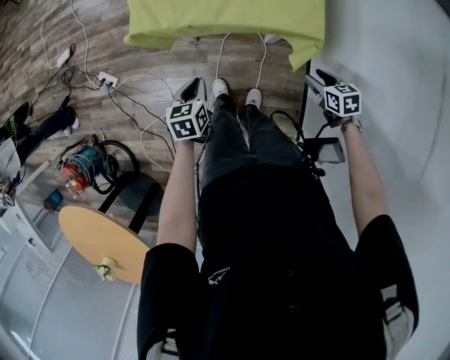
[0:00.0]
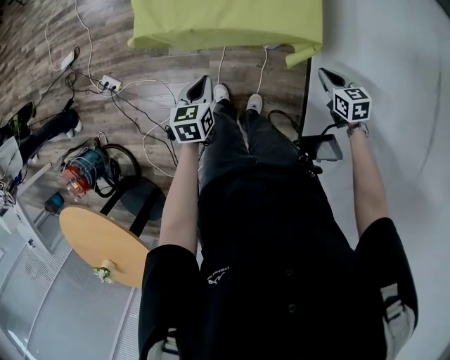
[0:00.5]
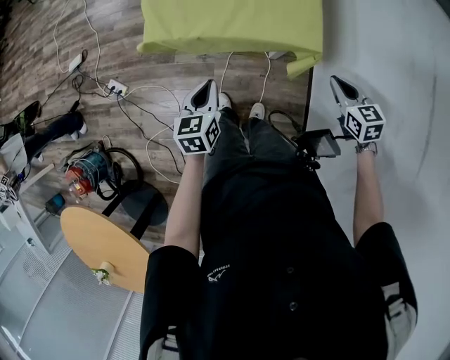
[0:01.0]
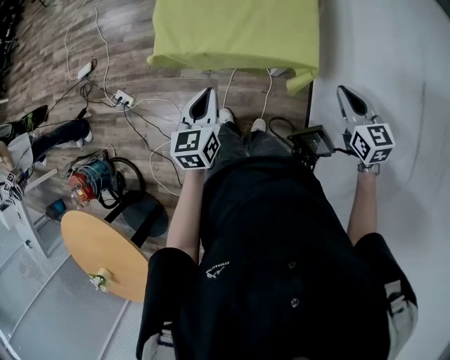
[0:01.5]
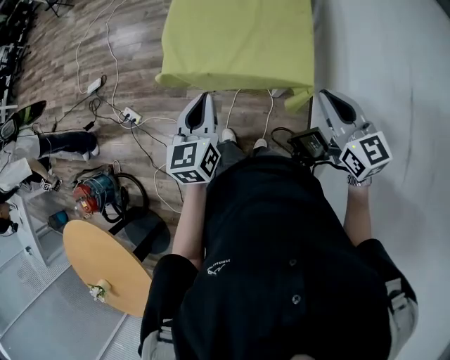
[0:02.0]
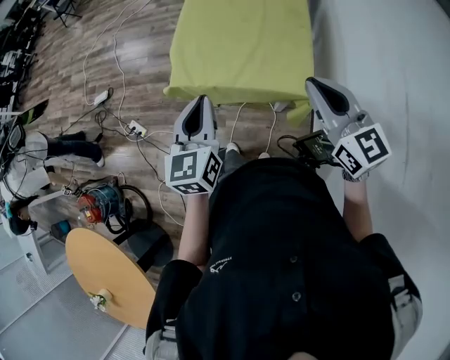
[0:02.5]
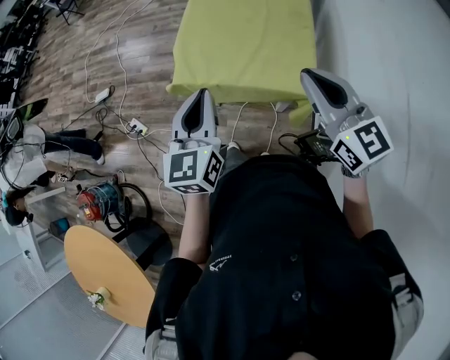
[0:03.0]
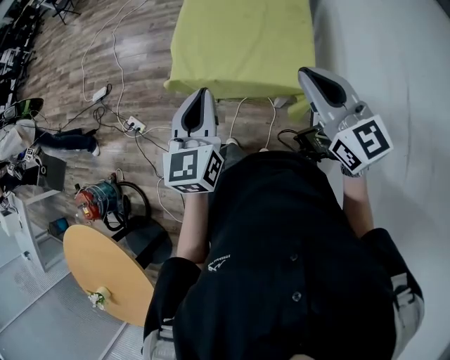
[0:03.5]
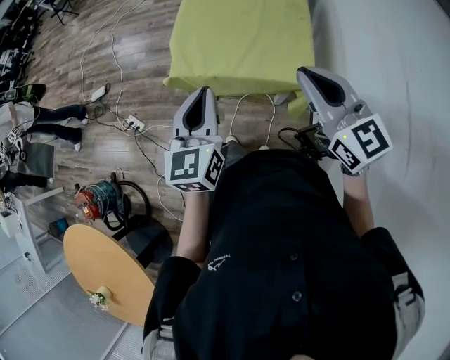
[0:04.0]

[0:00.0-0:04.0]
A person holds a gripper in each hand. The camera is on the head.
0:00.0 to 0:02.0: The grippers both shift upward by some 30 cm. The left gripper points its fingers roughly 30 degrees further upward. The right gripper angles its fingers upward, by about 40 degrees, and closes.
0:02.0 to 0:04.0: The left gripper goes about 10 cm upward; the right gripper travels upward and to the left by roughly 15 cm.

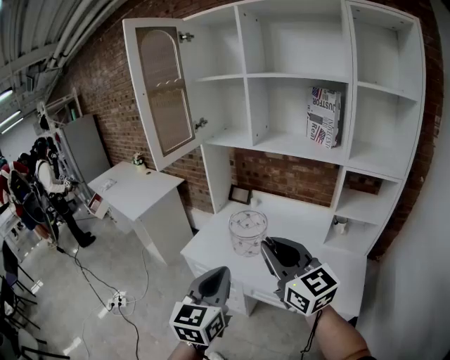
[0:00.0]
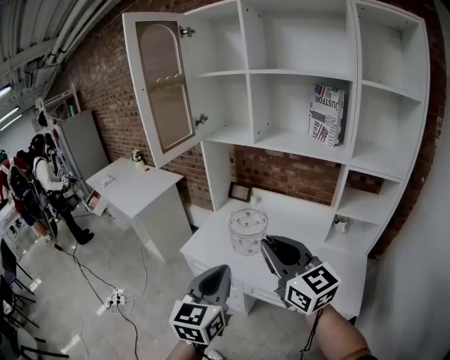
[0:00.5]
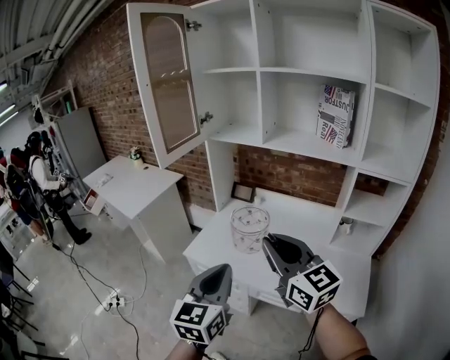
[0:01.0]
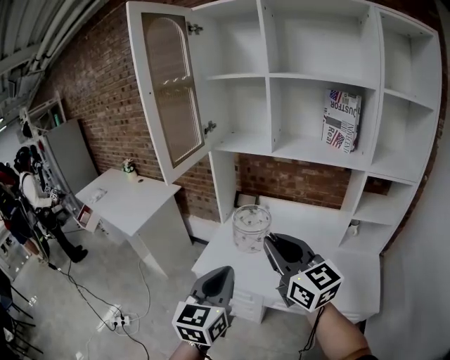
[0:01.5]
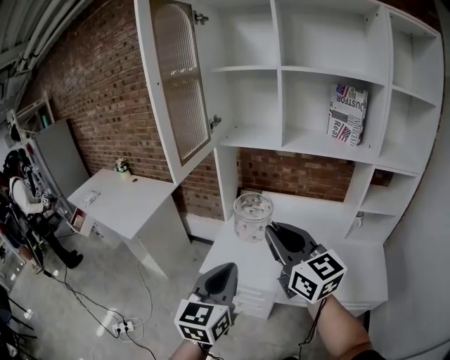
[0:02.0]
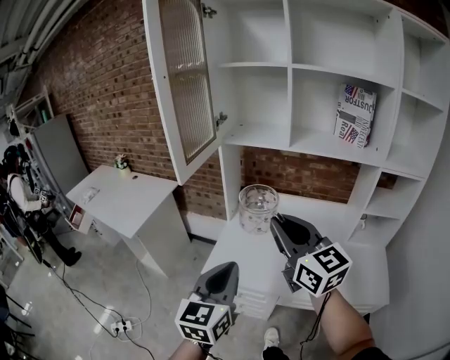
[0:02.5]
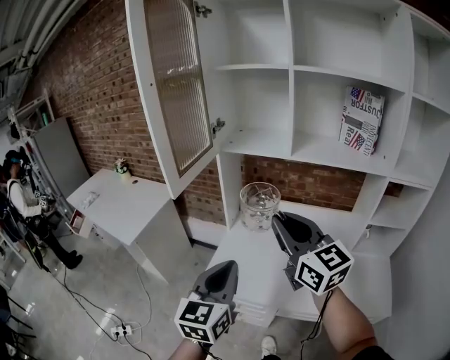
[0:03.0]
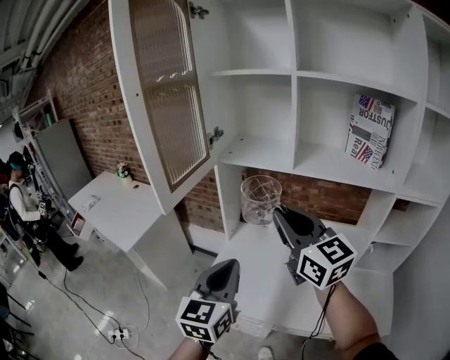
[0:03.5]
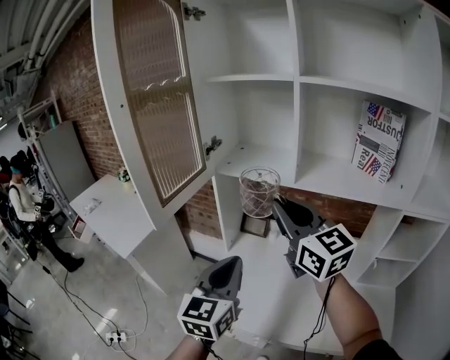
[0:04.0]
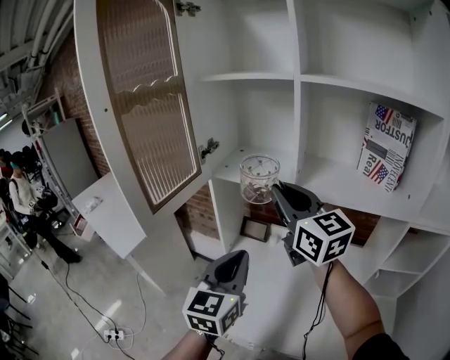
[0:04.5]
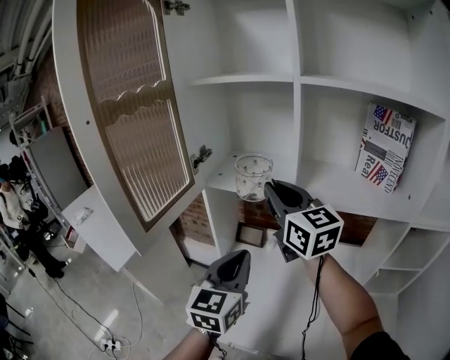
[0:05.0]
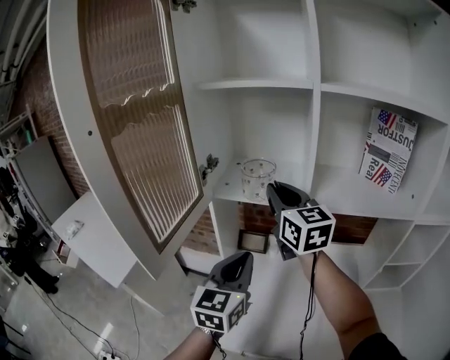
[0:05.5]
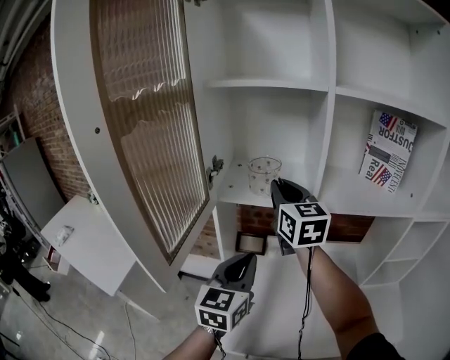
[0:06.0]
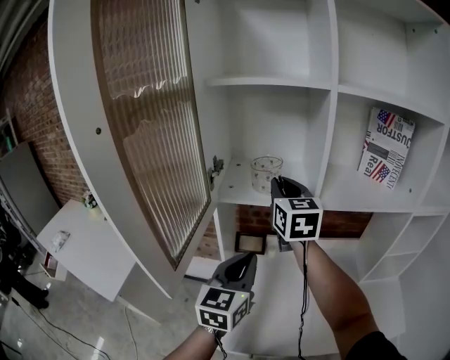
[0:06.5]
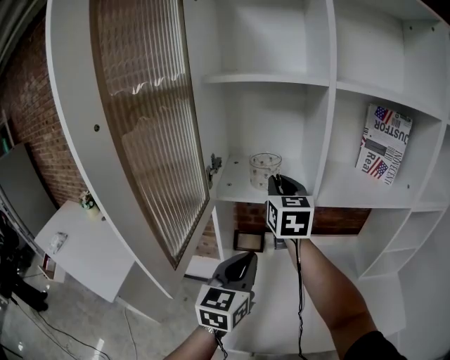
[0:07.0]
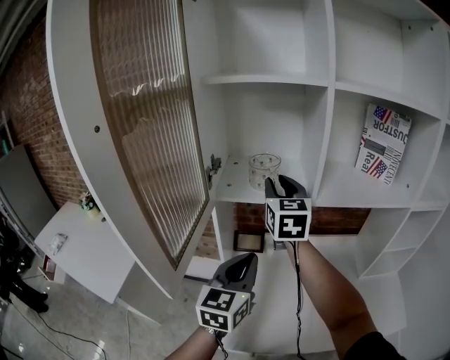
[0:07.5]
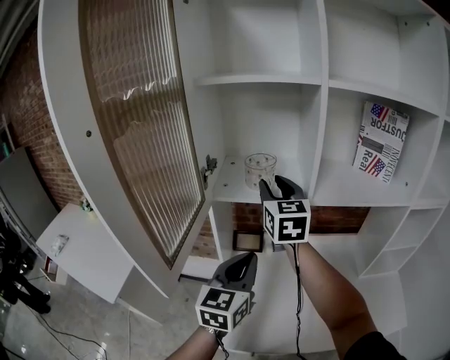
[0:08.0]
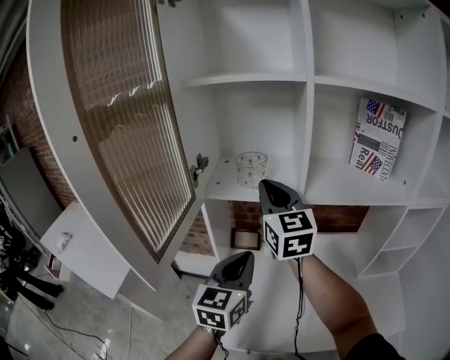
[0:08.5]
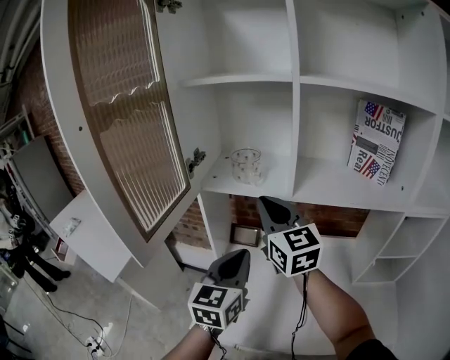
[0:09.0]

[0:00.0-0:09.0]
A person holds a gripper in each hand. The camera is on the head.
0:00.0 to 0:02.0: Both grippers travel together to the left and forward, about 20 cm.
0:02.0 to 0:04.5: Both grippers travel together forward, roughly 25 cm.
0:04.5 to 0:07.0: The right gripper changes place by about 15 cm, and turns by approximately 40 degrees, while the left gripper shifts by approximately 15 cm.
0:07.0 to 0:09.0: The right gripper is displaced backward by approximately 10 cm, changes its angle by approximately 20 degrees, and opens, then closes again. Meanwhile the left gripper heads to the right, covering approximately 5 cm.

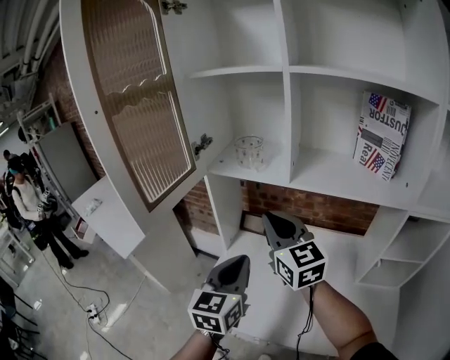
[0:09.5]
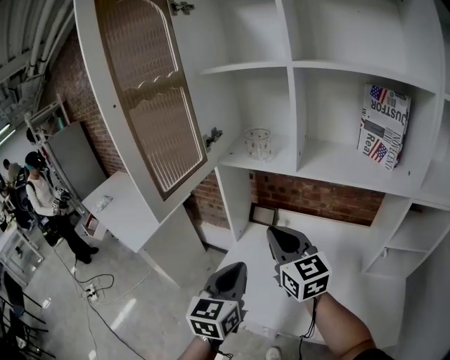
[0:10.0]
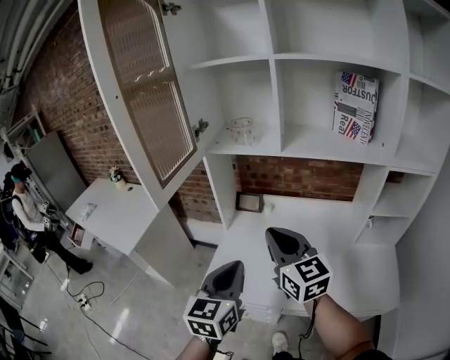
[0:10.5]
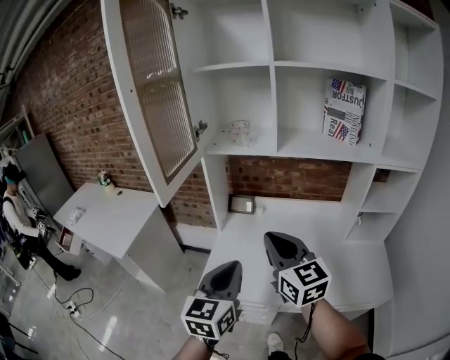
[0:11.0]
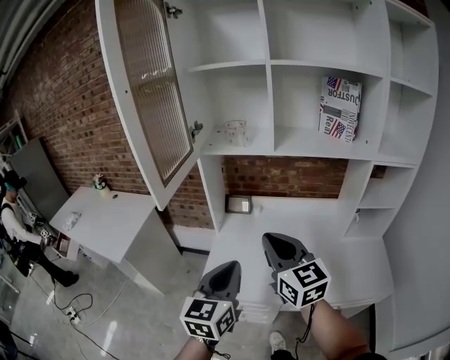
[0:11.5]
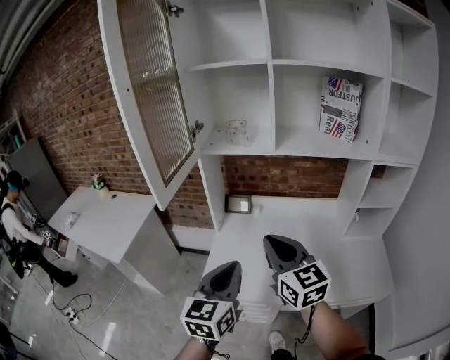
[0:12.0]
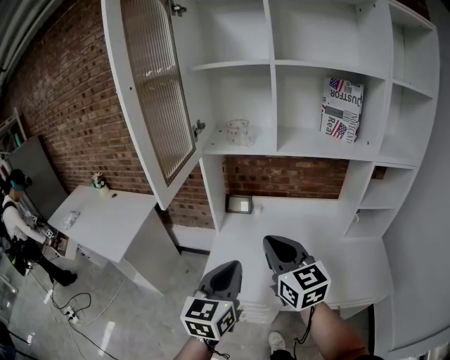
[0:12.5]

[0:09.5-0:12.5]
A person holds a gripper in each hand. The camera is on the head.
0:09.5 to 0:11.0: The left gripper travels backward and to the left by roughly 15 cm, while the right gripper shifts some 20 cm backward.
0:11.0 to 0:12.5: The two grippers keep their place.

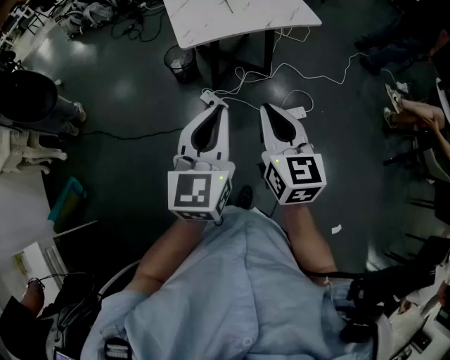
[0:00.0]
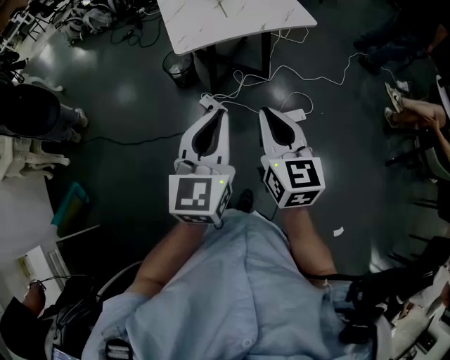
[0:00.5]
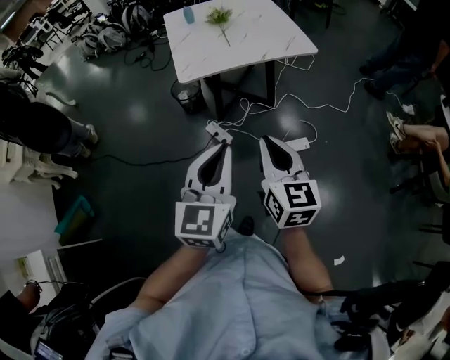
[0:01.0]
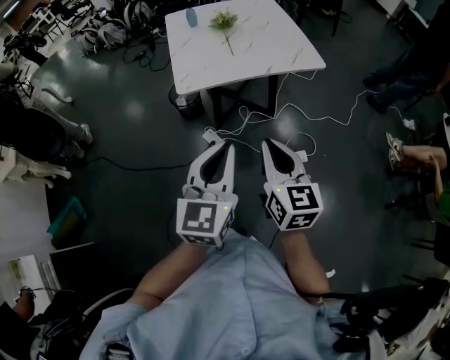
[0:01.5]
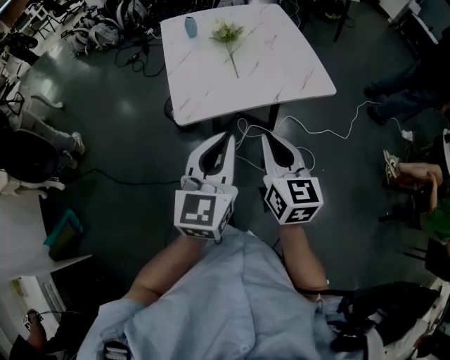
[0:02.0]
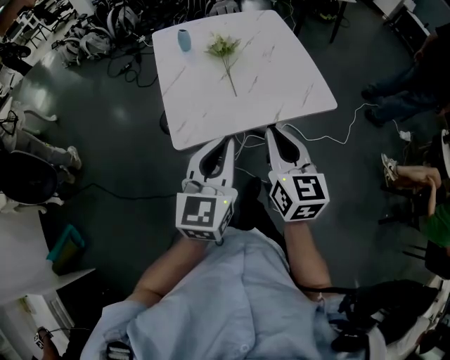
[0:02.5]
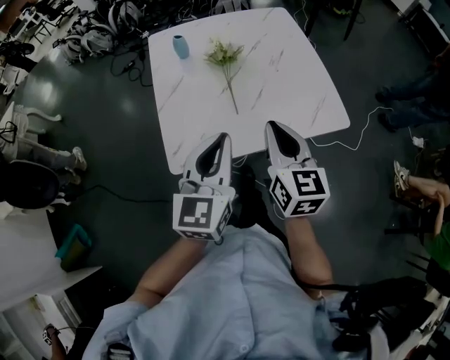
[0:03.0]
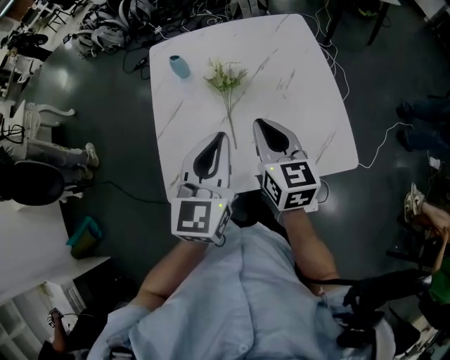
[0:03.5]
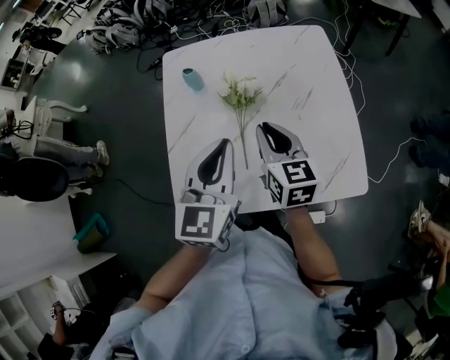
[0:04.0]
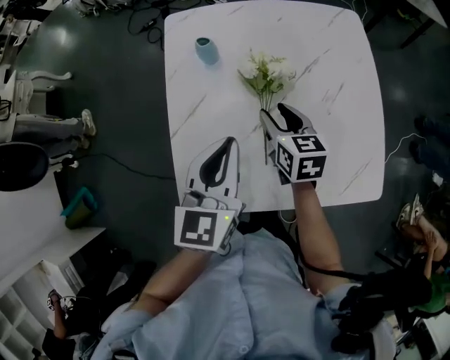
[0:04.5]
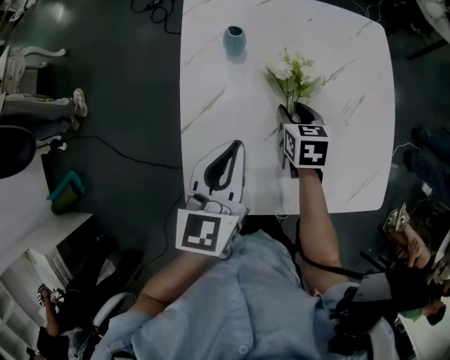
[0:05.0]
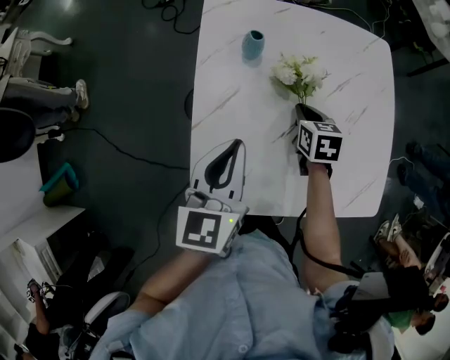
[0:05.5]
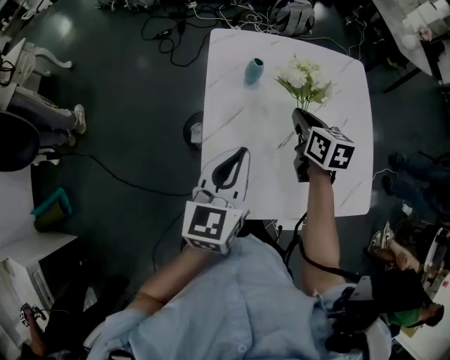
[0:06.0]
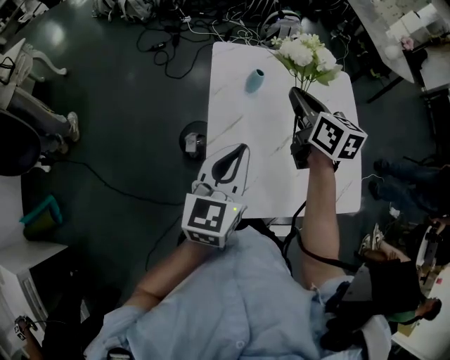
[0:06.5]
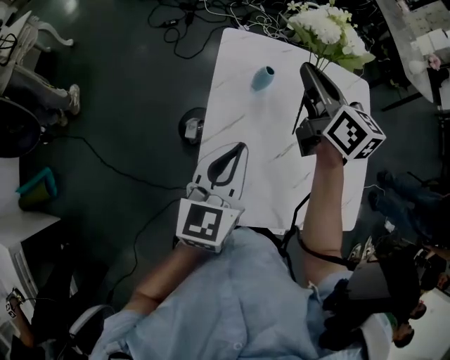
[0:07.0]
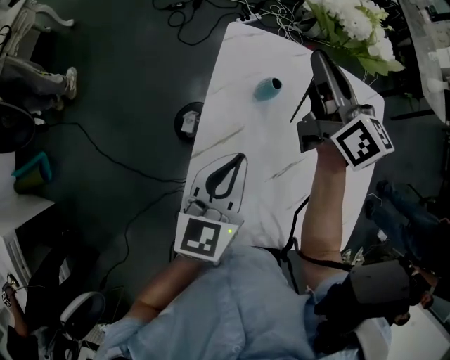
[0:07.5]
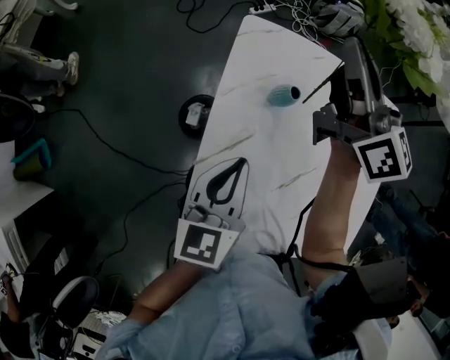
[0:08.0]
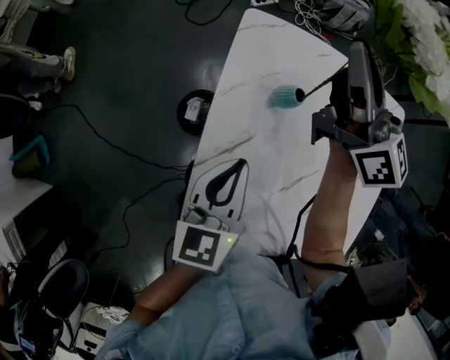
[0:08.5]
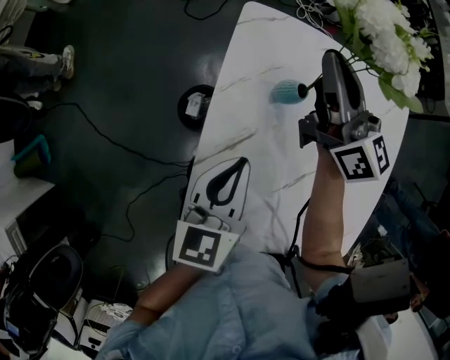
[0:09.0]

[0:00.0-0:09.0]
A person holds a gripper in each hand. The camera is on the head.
0:00.0 to 0:02.0: Both grippers travel together forward, about 25 cm.
0:02.0 to 0:04.5: Both grippers move forward, approximately 40 cm. The left gripper rotates some 20 degrees. Meanwhile the right gripper rotates approximately 30 degrees, and opens.
0:04.5 to 0:07.0: The right gripper travels upward, forward and to the left by roughly 30 cm, rotates approximately 20 degrees, and closes; the left gripper travels to the left by approximately 15 cm.
0:07.0 to 0:09.0: The right gripper heads forward and downward, covering approximately 15 cm; the left gripper heads downward and forward, covering about 15 cm.

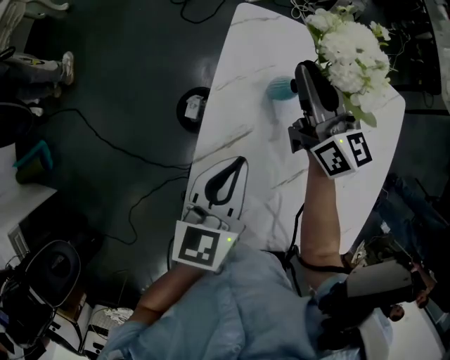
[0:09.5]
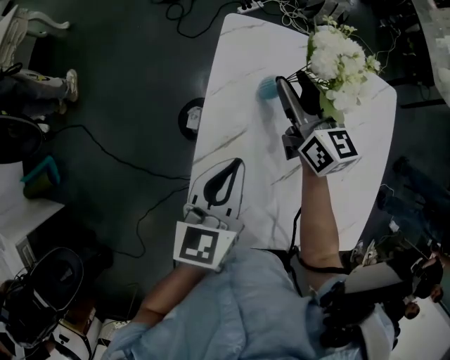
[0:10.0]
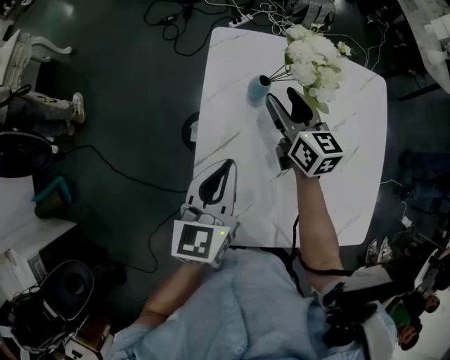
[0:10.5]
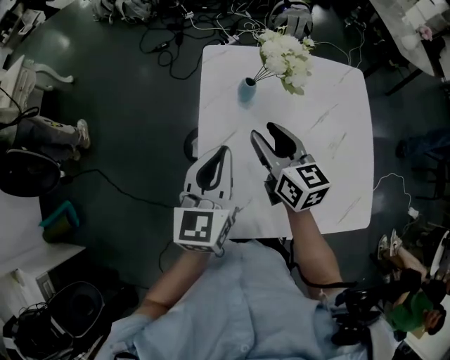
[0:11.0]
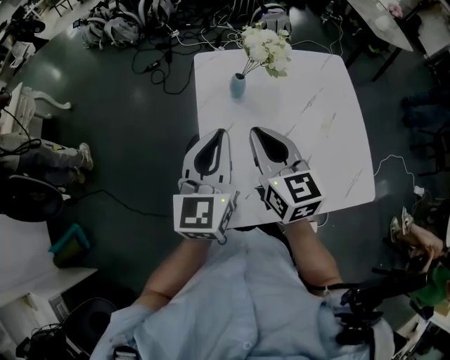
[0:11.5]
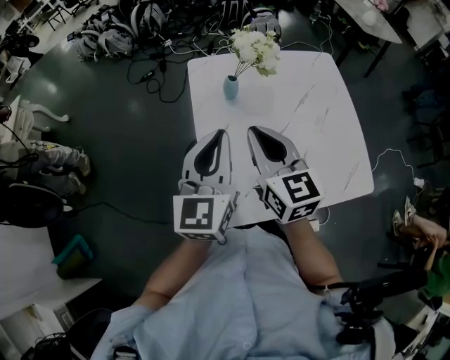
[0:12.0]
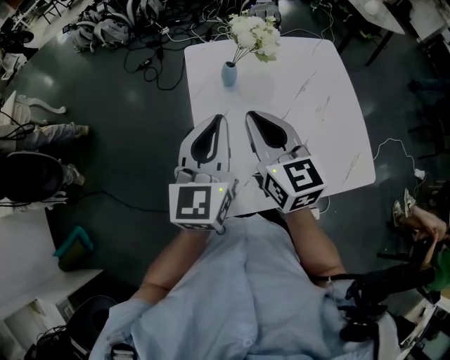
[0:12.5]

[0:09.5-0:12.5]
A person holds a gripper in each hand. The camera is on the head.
0:09.5 to 0:11.0: The right gripper travels backward by some 20 cm, and opens, while the left gripper is displaced upward by approximately 10 cm.
0:11.0 to 0:12.5: The right gripper goes some 10 cm upward and backward, and closes, while the left gripper shifts roughly 5 cm upward.
